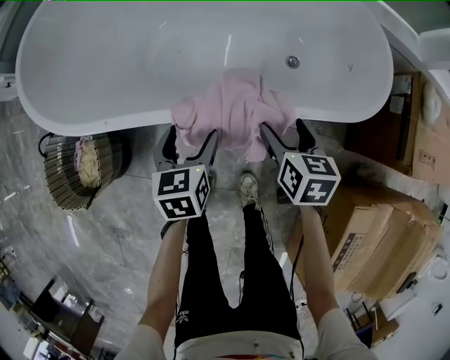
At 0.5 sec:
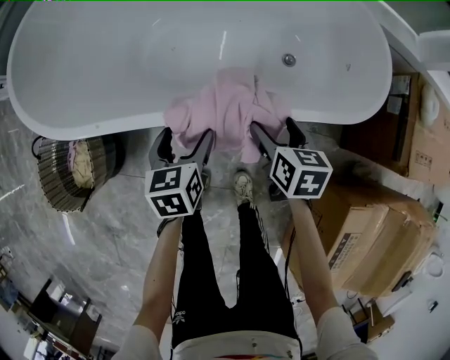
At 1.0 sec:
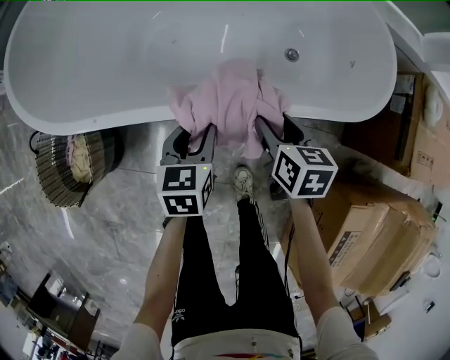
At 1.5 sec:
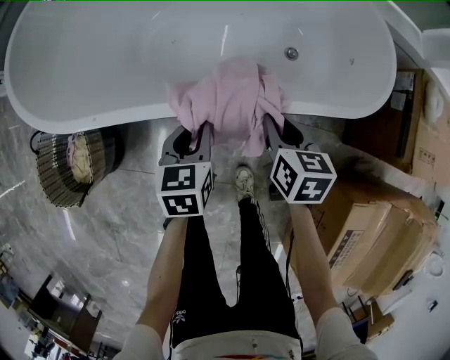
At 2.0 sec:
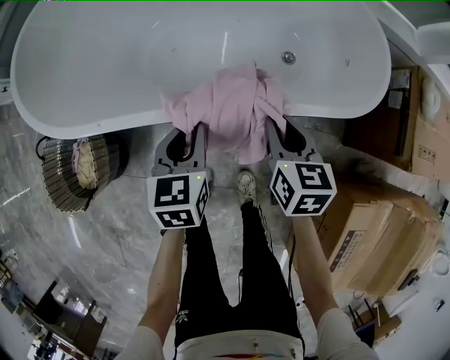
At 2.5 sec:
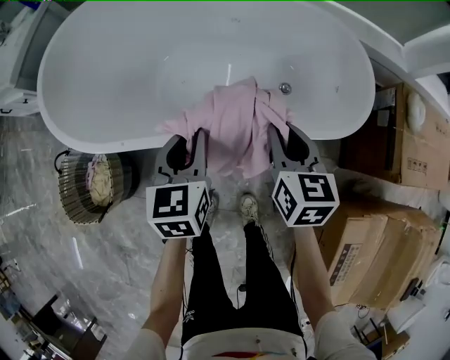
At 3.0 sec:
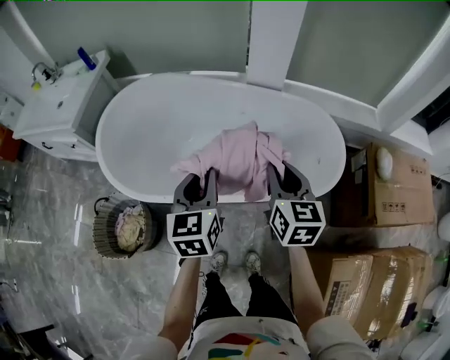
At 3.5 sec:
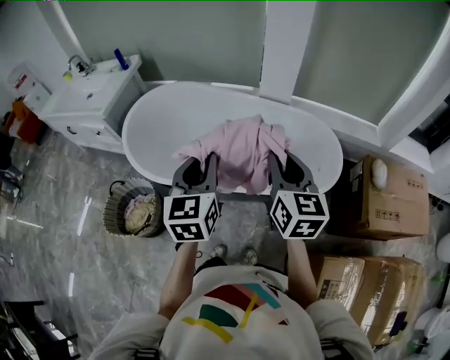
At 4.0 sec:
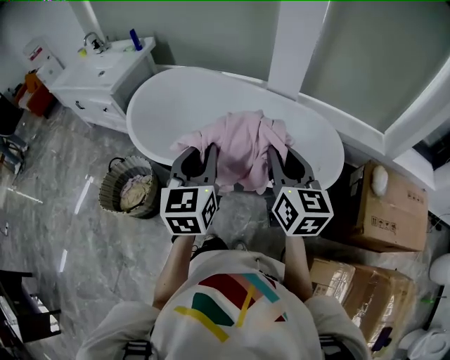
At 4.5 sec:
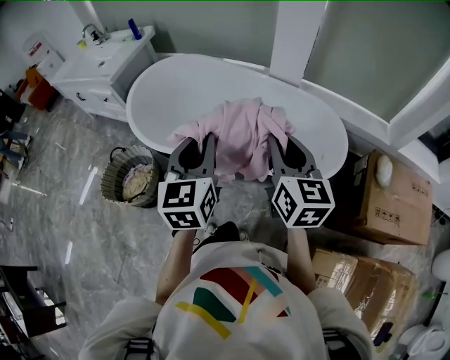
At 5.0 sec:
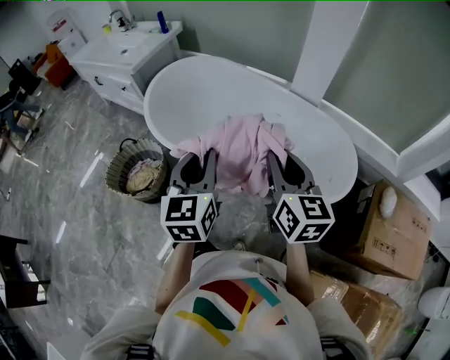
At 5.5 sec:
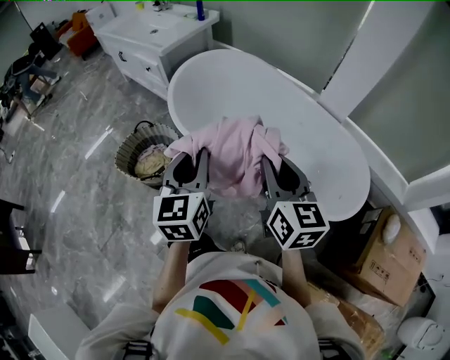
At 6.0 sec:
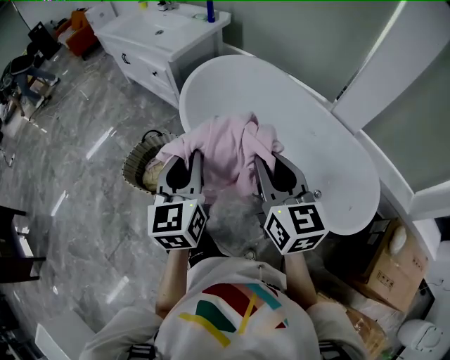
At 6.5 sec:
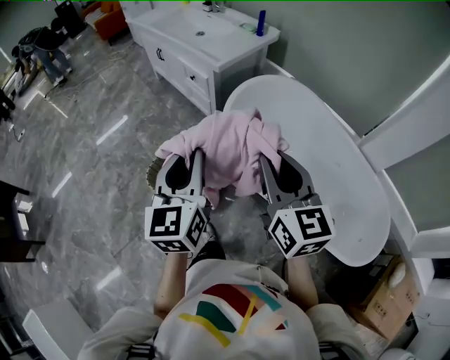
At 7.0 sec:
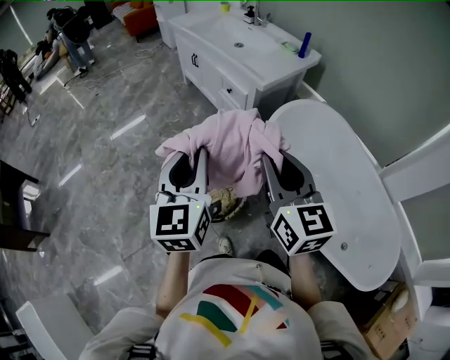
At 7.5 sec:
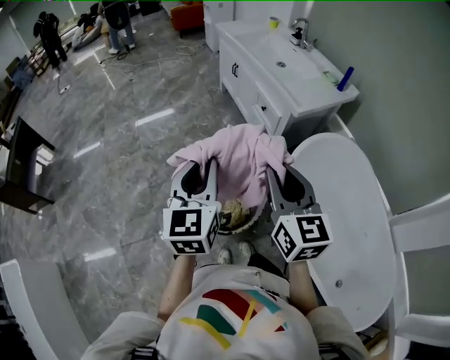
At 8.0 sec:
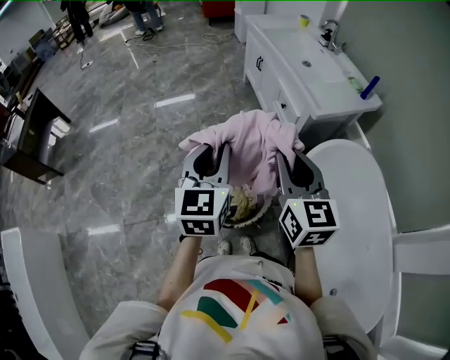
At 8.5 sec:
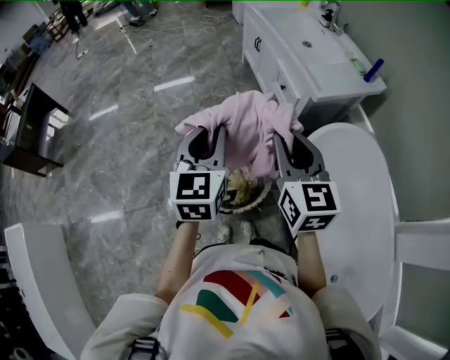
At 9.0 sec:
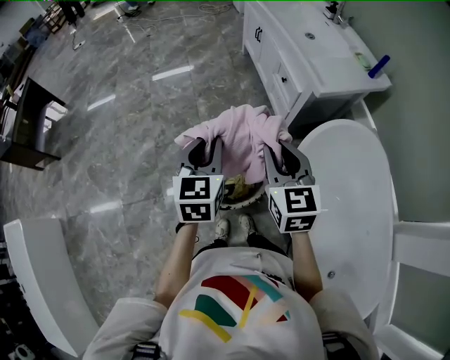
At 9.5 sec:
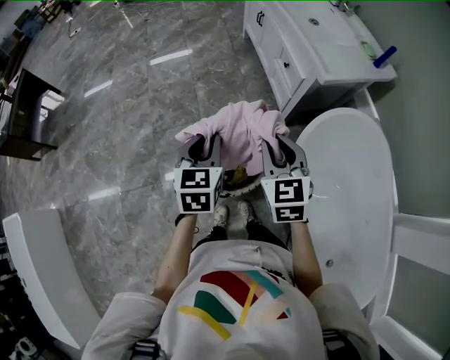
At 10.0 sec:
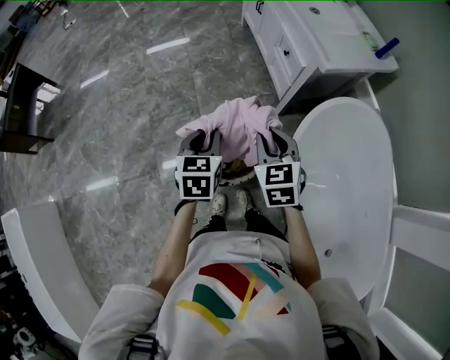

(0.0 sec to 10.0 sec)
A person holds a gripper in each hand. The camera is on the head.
0.0 sec - 2.0 sec: The right gripper closes up. Meanwhile the left gripper closes its fingers.
2.0 sec - 4.0 sec: The two grippers go some 40 cm upward. The right gripper tilts its fingers some 30 degrees upward; the left gripper swivels approximately 30 degrees.
4.0 sec - 6.0 sec: The right gripper is displaced to the left and forward by roughly 25 cm, and swivels about 30 degrees. The left gripper shifts about 25 cm to the left, and rotates some 20 degrees.
6.0 sec - 8.0 sec: The right gripper shifts by some 50 cm, and swivels about 30 degrees, while the left gripper moves approximately 40 cm, and rotates about 30 degrees.
8.0 sec - 10.0 sec: The grippers both shift downward by roughly 20 cm. The right gripper rotates about 30 degrees, while the left gripper turns by some 30 degrees.

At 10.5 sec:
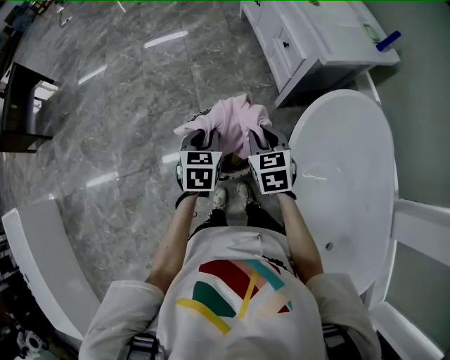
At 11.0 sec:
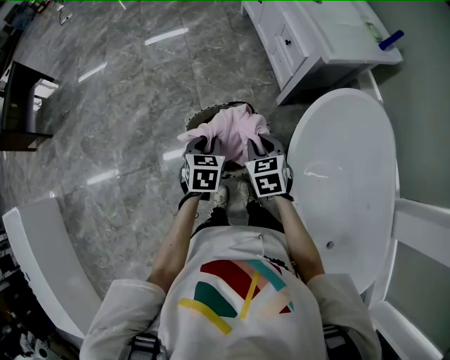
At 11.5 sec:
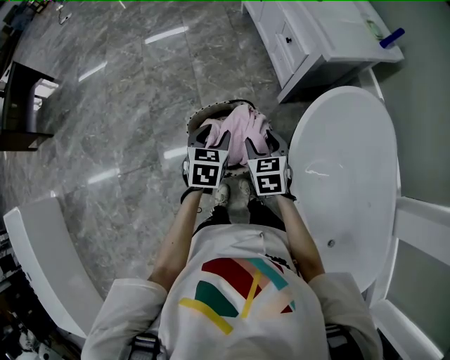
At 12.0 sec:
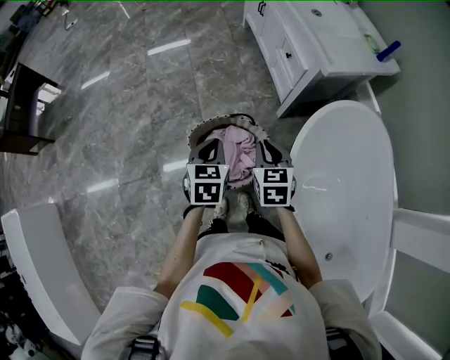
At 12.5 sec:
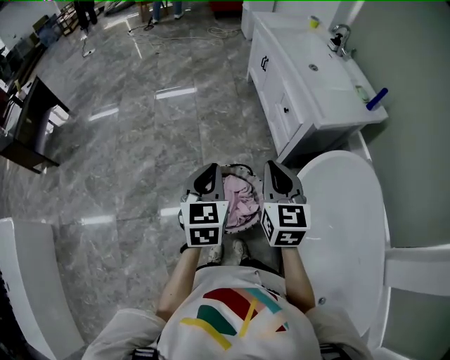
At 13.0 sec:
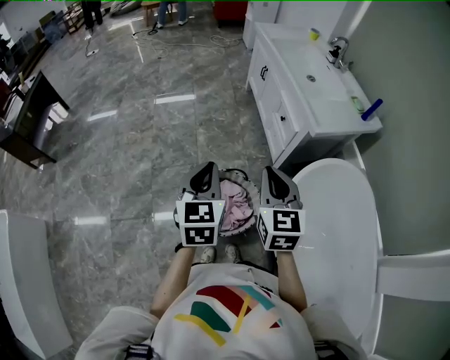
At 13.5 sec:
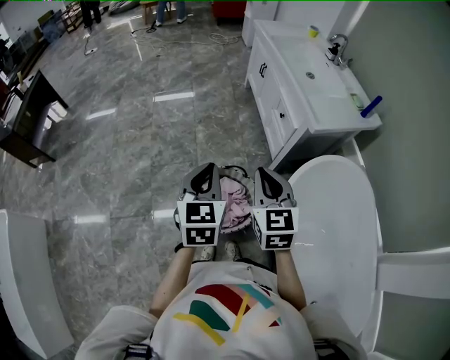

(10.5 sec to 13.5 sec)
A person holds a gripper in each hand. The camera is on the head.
10.5 sec - 12.0 sec: The left gripper opens, then closes again, while the right gripper opens, then closes again.
12.0 sec - 13.5 sec: Both grippers travel together upward, approximately 15 cm. The right gripper swivels about 20 degrees.

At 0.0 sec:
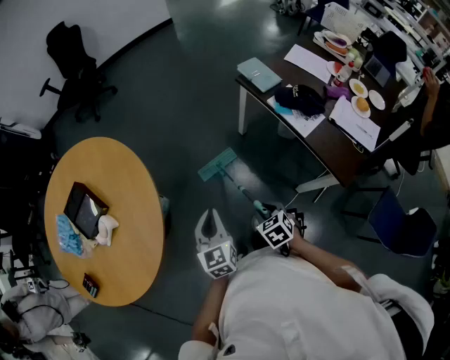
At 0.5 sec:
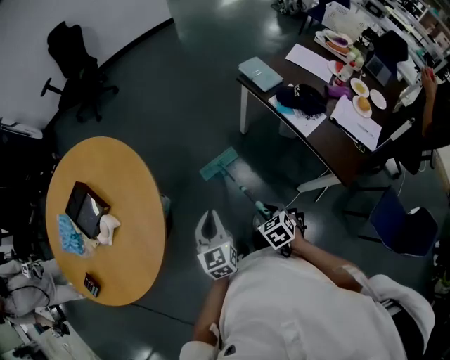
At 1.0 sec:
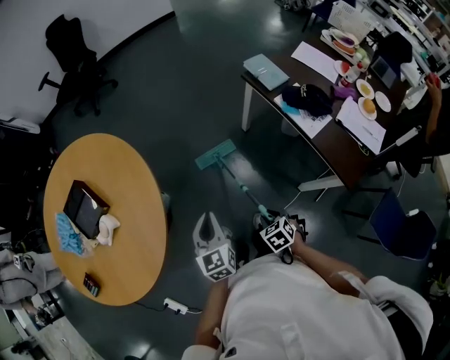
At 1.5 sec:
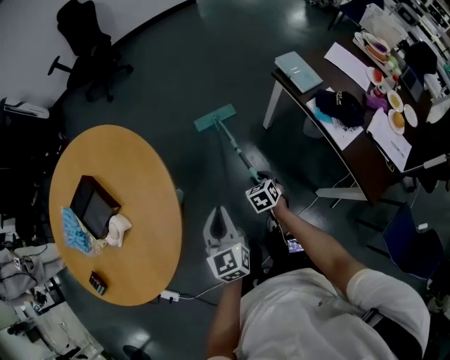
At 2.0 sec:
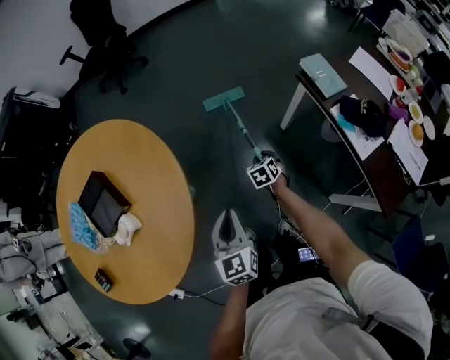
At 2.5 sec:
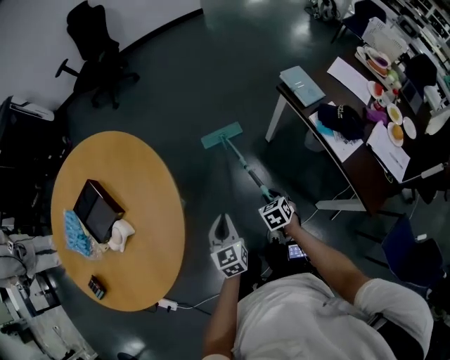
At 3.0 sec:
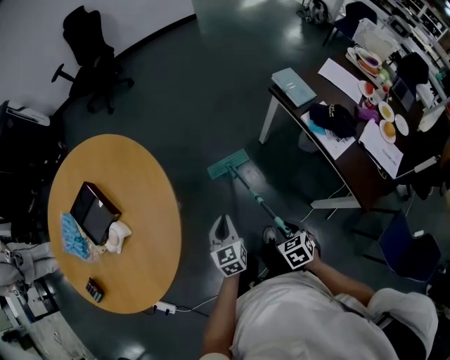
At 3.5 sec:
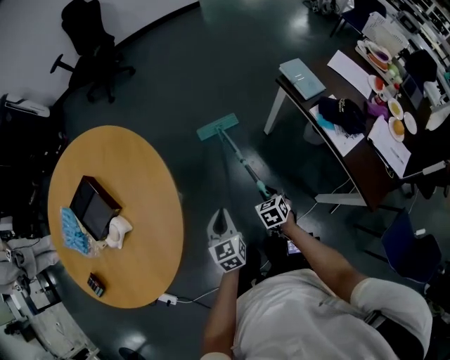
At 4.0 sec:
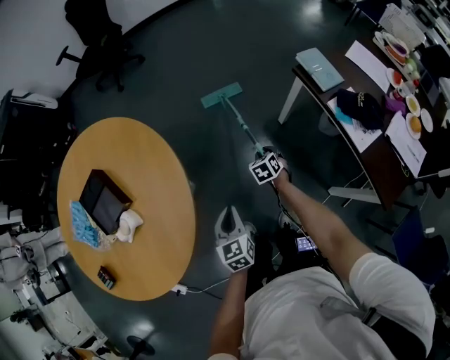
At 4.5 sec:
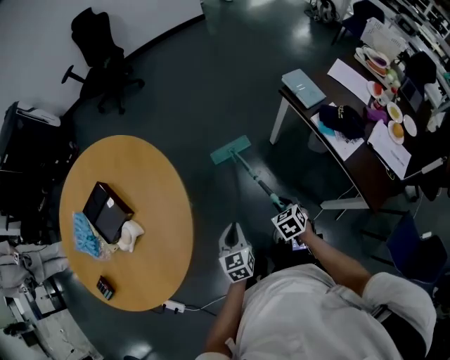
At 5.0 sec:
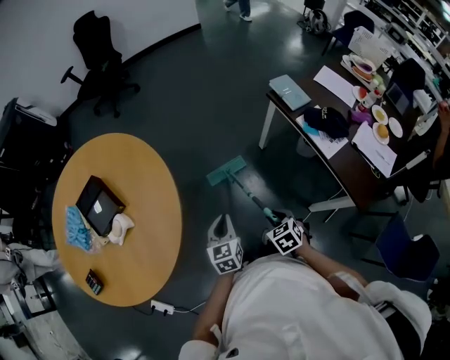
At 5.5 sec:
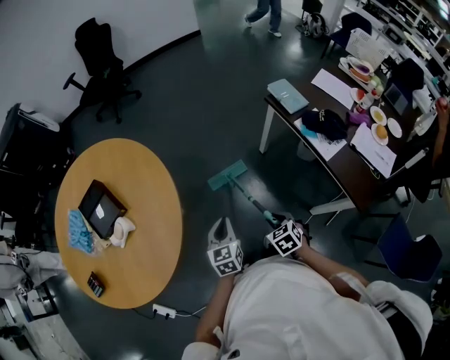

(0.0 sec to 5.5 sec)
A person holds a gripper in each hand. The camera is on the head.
0.0 sec - 2.0 sec: The left gripper is displaced forward and to the left by roughly 15 cm. Meanwhile the right gripper heads forward and downward, covering some 35 cm.
2.0 sec - 3.5 sec: The left gripper is displaced downward by approximately 5 cm. The right gripper is displaced backward by some 15 cm.
3.5 sec - 5.5 sec: The left gripper goes about 5 cm backward. The right gripper moves backward and upward, some 15 cm.

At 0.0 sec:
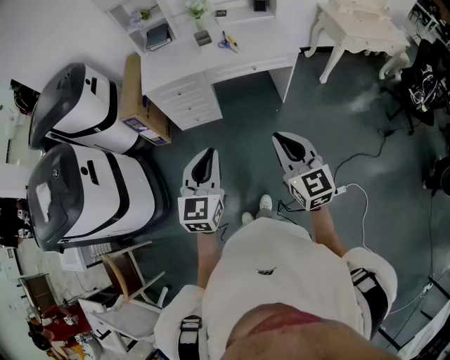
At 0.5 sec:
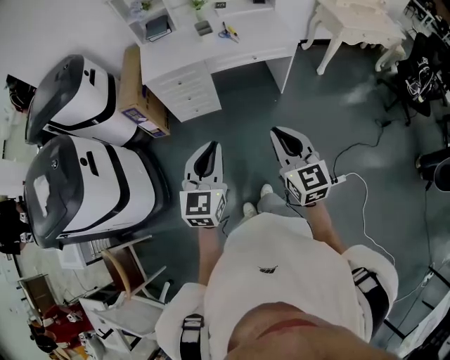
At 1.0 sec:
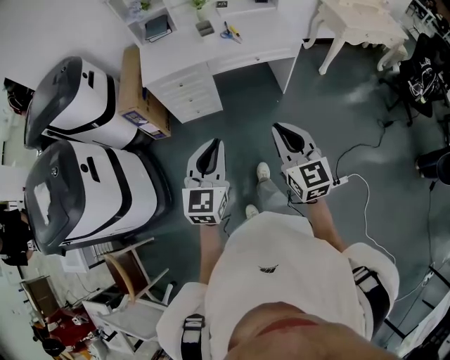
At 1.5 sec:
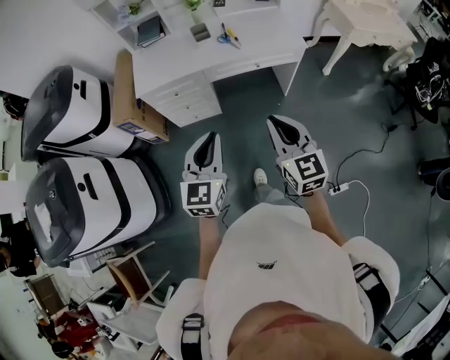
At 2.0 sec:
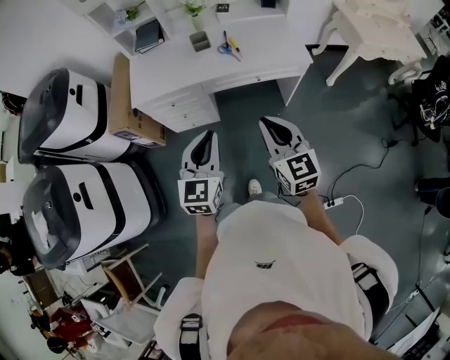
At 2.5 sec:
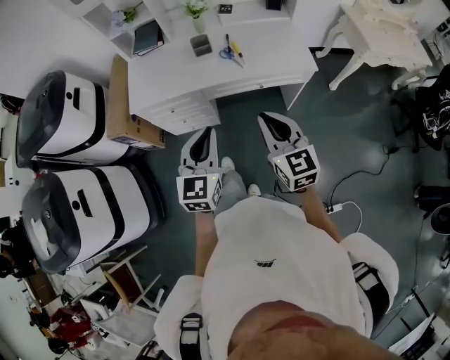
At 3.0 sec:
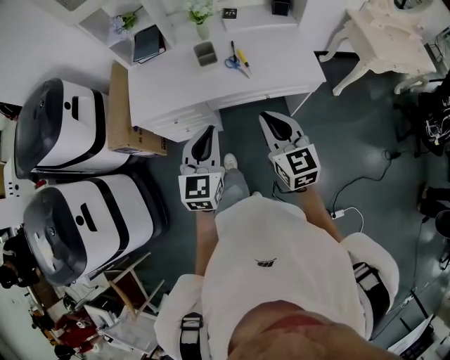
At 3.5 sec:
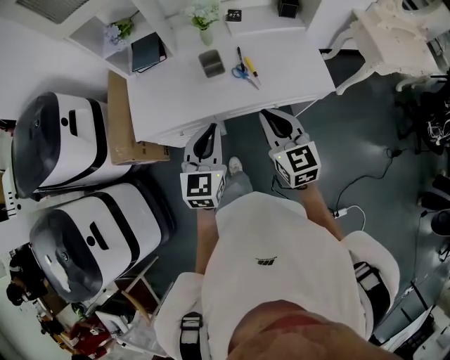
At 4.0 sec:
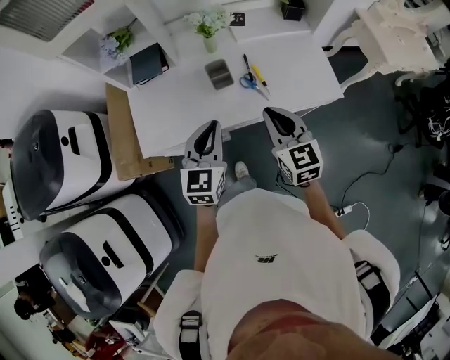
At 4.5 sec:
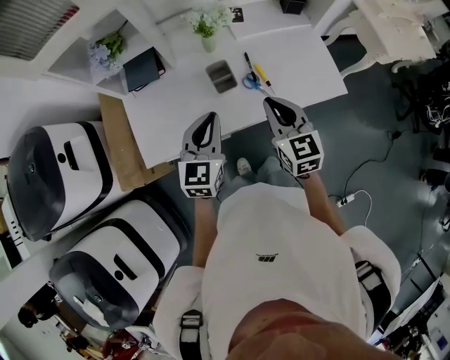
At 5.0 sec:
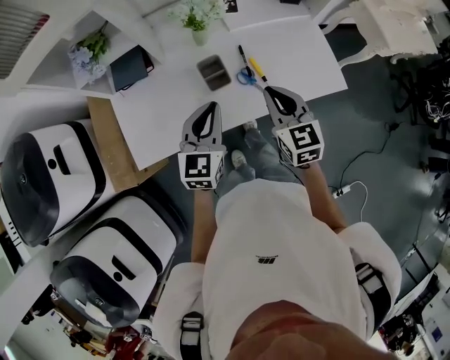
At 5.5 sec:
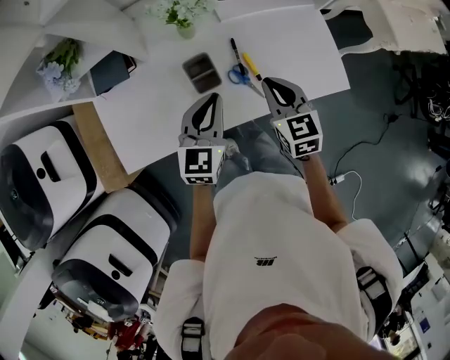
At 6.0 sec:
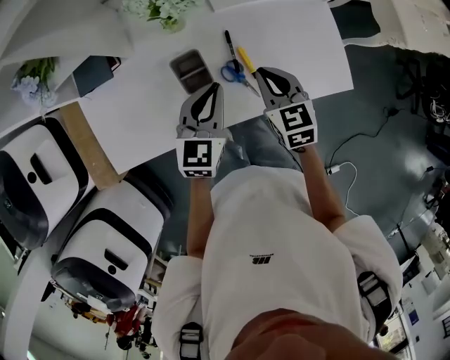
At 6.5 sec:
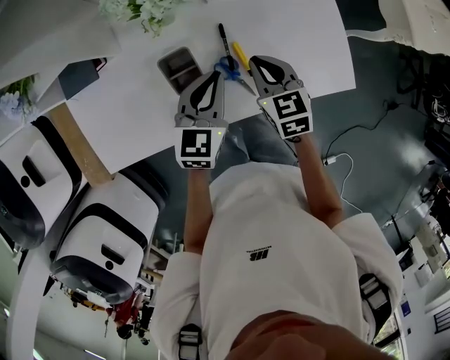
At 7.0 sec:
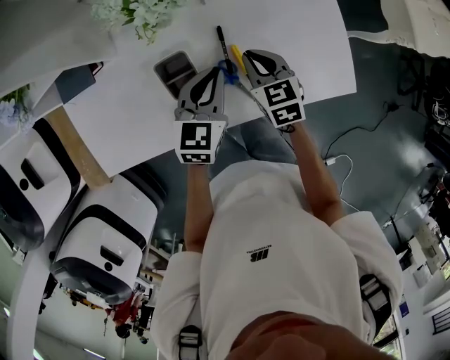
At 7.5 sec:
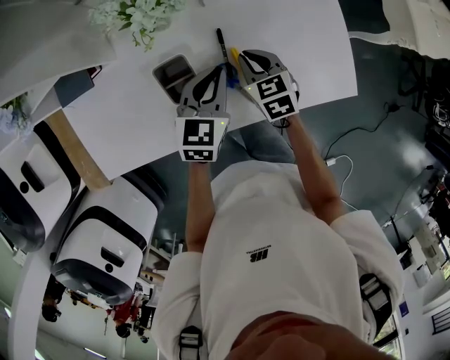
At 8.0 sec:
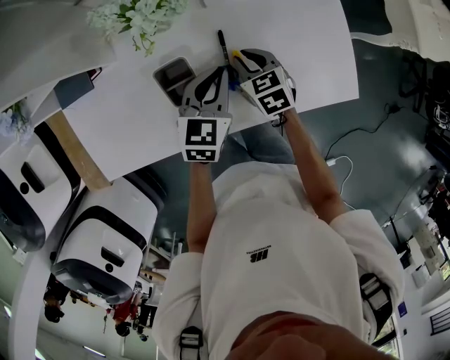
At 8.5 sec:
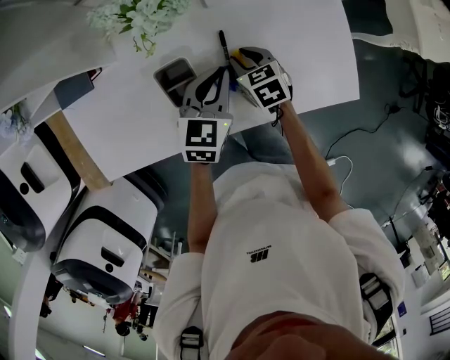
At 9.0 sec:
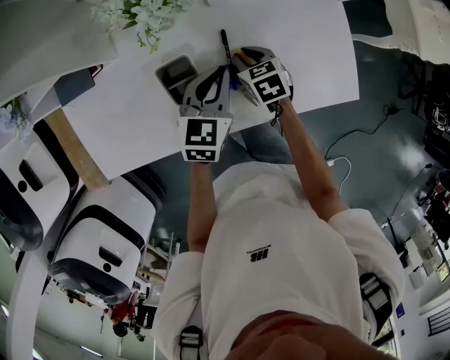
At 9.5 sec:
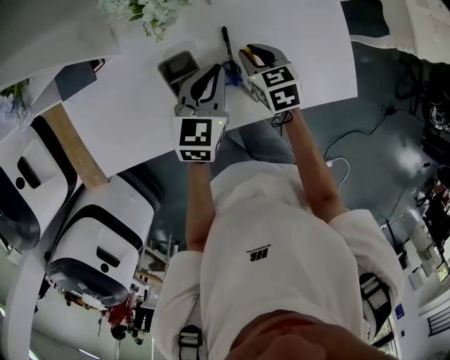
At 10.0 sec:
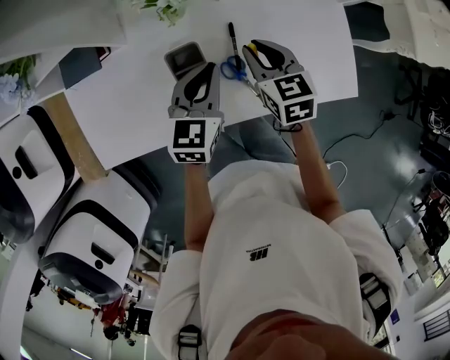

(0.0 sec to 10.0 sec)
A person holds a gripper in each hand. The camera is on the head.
0.0 sec - 2.0 sec: Both grippers move forward, some 25 cm.
2.0 sec - 4.0 sec: The grippers both shift forward by some 35 cm.
4.0 sec - 6.0 sec: Both grippers move forward and downward, roughly 25 cm.
6.0 sec - 8.0 sec: The two grippers go some 15 cm downward and forward.
8.0 sec - 10.0 sec: The right gripper moves upward, approximately 10 cm; the left gripper goes roughly 5 cm to the left.
